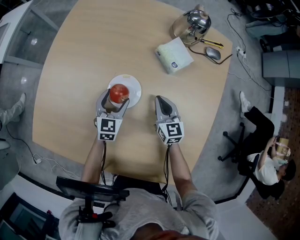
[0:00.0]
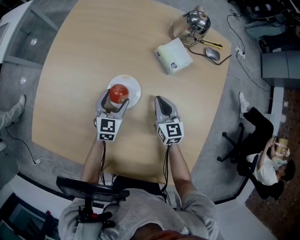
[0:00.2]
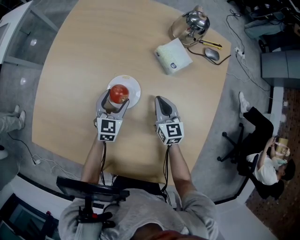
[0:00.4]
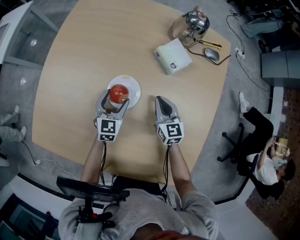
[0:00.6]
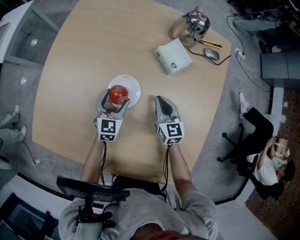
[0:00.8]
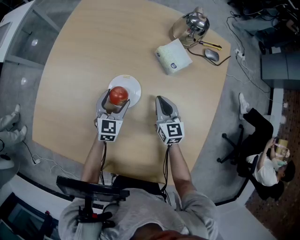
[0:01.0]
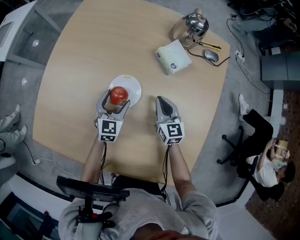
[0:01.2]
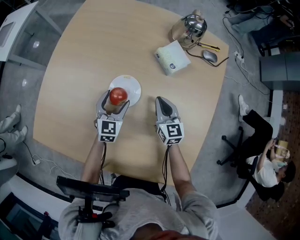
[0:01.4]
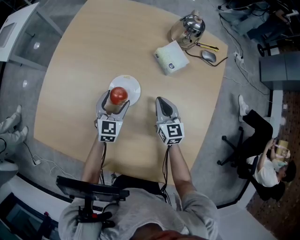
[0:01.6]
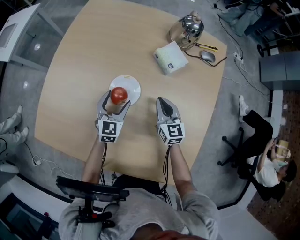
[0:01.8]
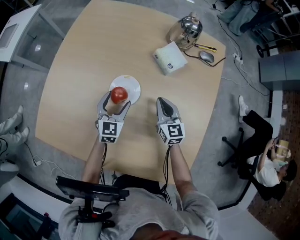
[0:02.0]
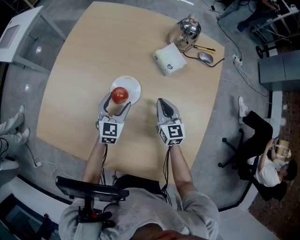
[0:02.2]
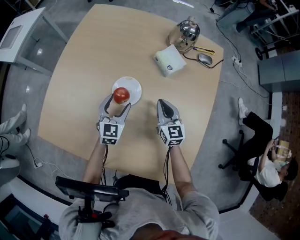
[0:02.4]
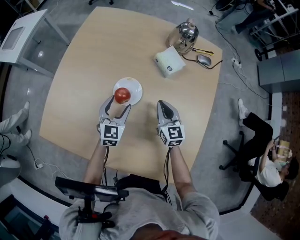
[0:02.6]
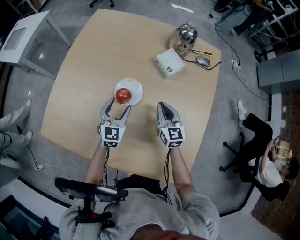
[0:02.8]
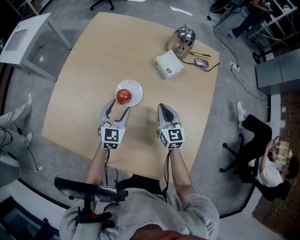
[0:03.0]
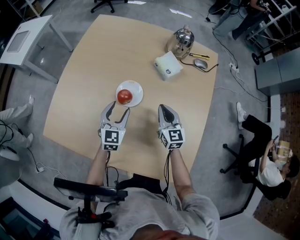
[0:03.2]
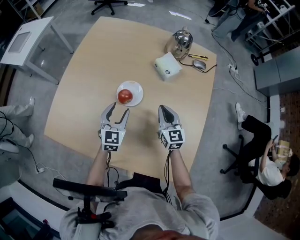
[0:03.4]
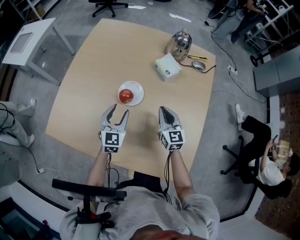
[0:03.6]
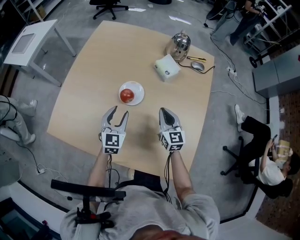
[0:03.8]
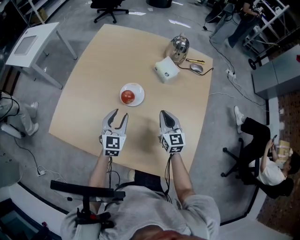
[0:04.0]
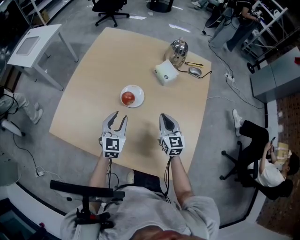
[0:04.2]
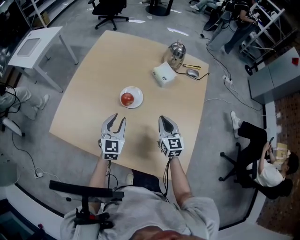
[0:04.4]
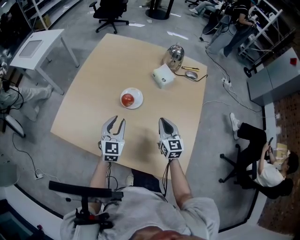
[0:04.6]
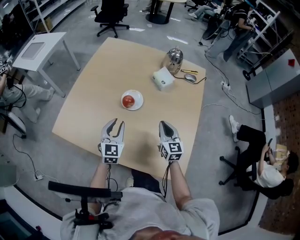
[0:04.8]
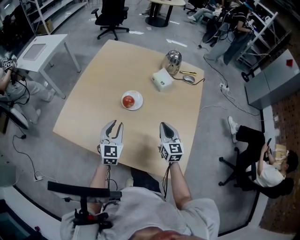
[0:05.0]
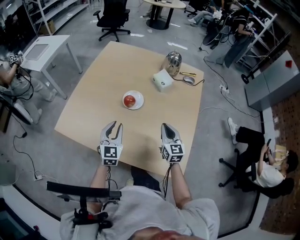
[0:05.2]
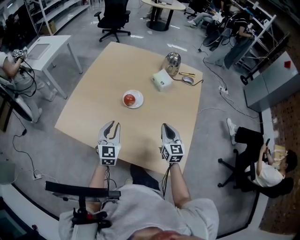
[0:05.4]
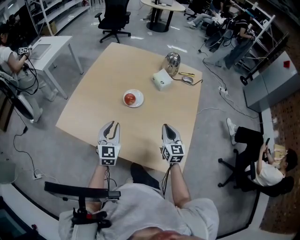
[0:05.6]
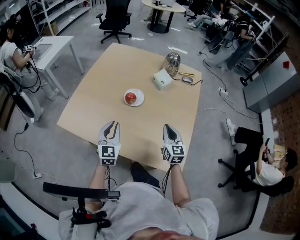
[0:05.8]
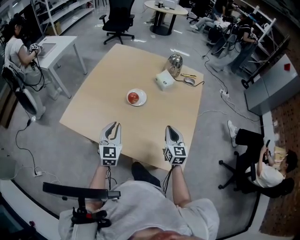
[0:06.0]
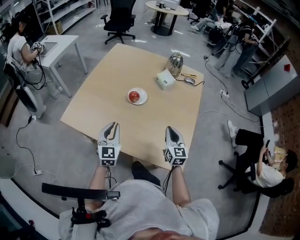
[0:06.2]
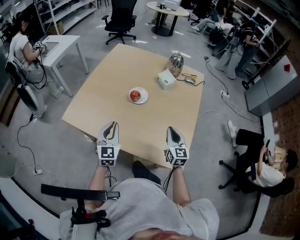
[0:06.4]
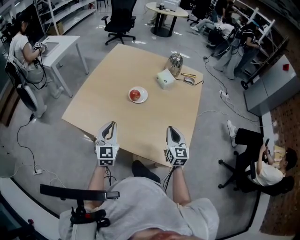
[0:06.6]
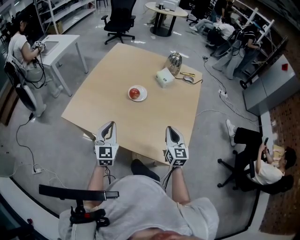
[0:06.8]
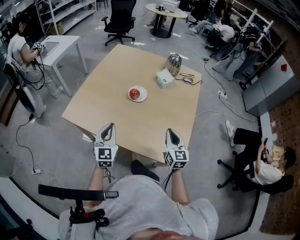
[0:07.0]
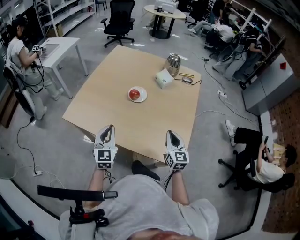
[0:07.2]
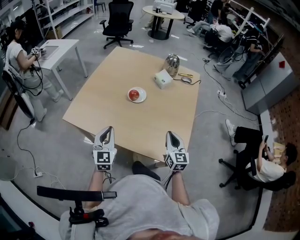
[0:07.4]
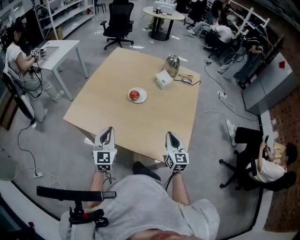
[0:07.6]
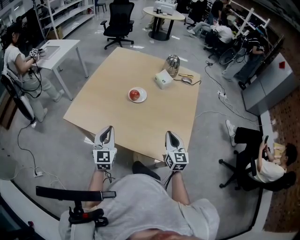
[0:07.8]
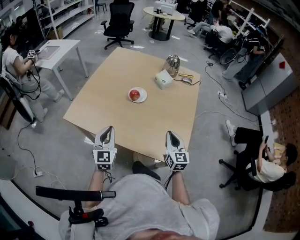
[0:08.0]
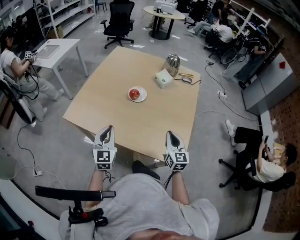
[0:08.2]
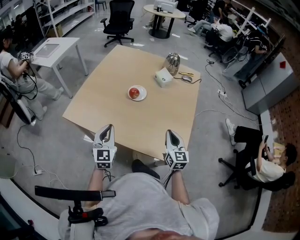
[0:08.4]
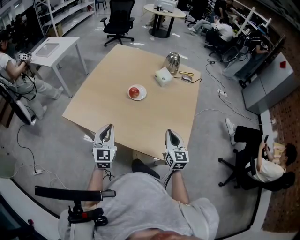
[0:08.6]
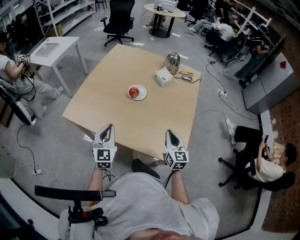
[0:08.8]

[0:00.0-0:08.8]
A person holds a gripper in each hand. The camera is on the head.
0:00.0 to 0:01.4: The grippers stay close to where they were, moving slightly.
0:01.4 to 0:03.0: Both grippers travel together upward and backward, about 10 cm.
0:03.0 to 0:04.4: The two grippers go some 10 cm backward and upward. The left gripper closes.
0:04.4 to 0:05.8: The left gripper heads backward and upward, covering about 15 cm, while the right gripper shifts about 10 cm backward.
0:05.8 to 0:07.4: Both grippers travel together backward, about 10 cm.
0:07.4 to 0:08.8: The two grippers keep their place.

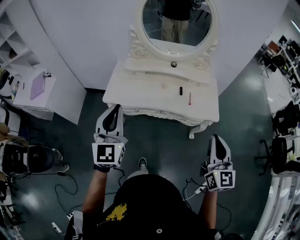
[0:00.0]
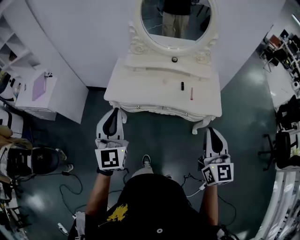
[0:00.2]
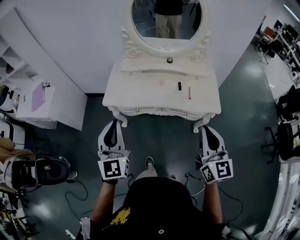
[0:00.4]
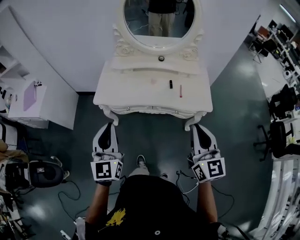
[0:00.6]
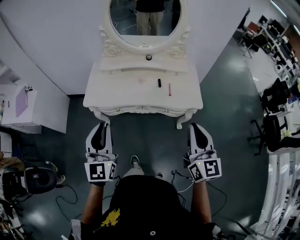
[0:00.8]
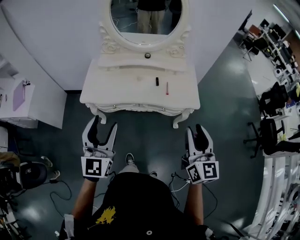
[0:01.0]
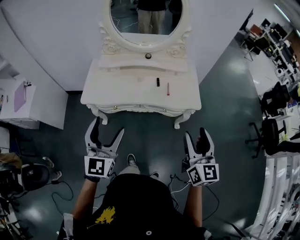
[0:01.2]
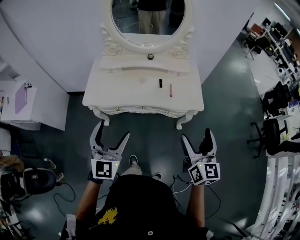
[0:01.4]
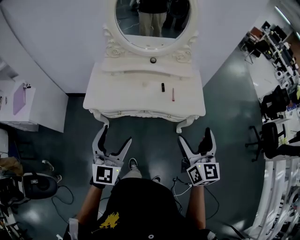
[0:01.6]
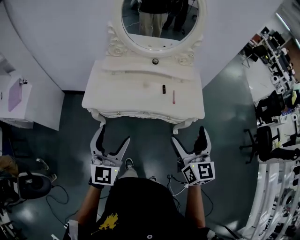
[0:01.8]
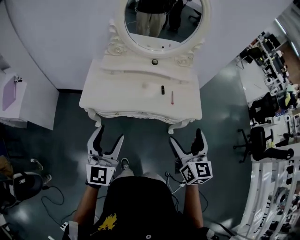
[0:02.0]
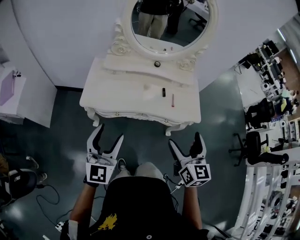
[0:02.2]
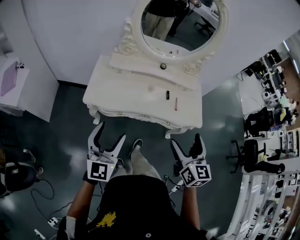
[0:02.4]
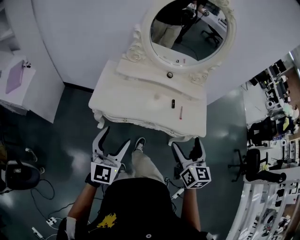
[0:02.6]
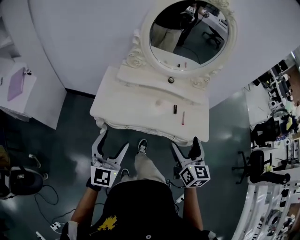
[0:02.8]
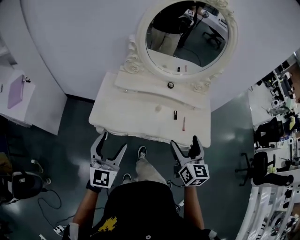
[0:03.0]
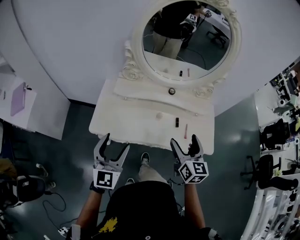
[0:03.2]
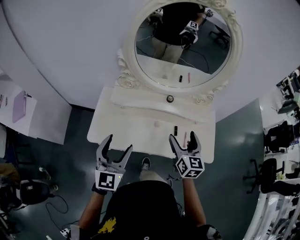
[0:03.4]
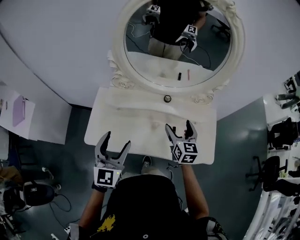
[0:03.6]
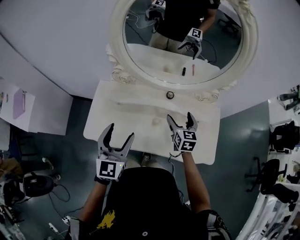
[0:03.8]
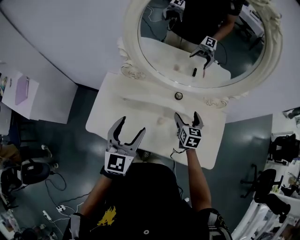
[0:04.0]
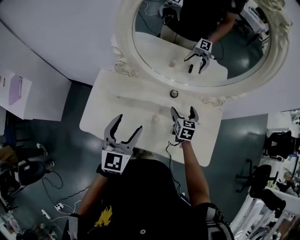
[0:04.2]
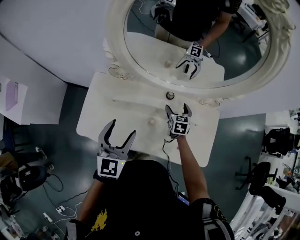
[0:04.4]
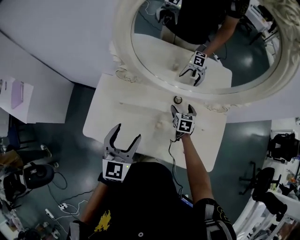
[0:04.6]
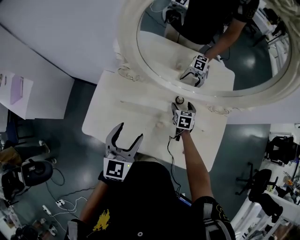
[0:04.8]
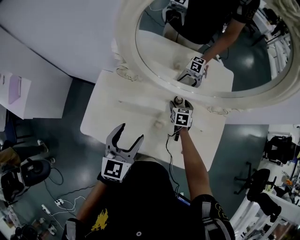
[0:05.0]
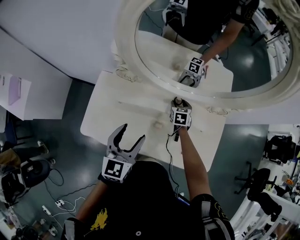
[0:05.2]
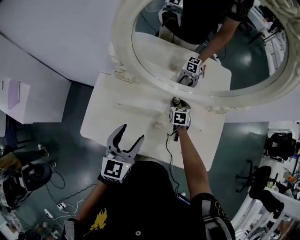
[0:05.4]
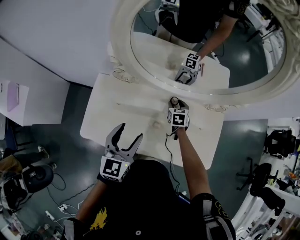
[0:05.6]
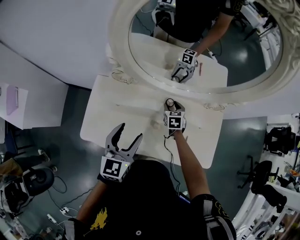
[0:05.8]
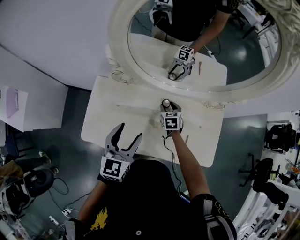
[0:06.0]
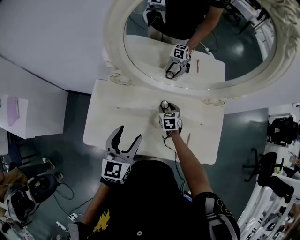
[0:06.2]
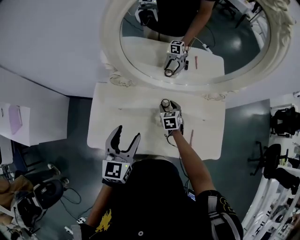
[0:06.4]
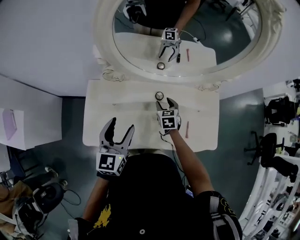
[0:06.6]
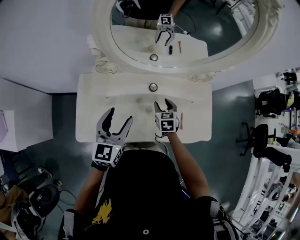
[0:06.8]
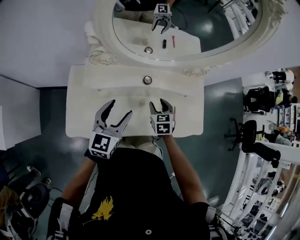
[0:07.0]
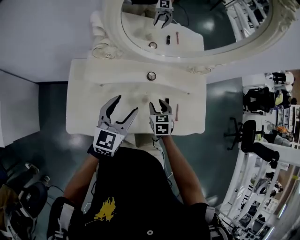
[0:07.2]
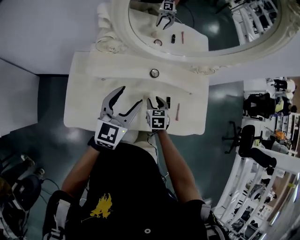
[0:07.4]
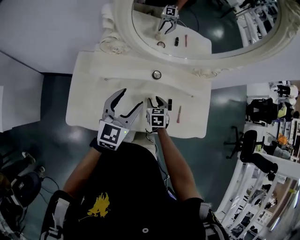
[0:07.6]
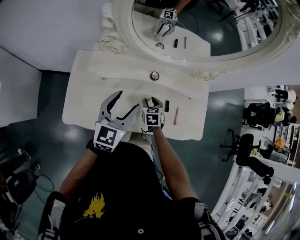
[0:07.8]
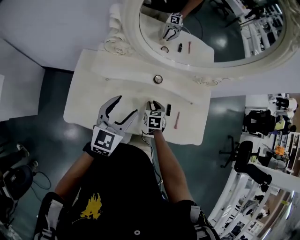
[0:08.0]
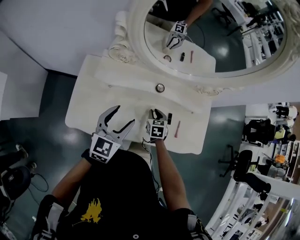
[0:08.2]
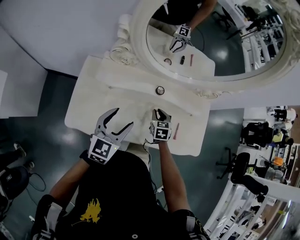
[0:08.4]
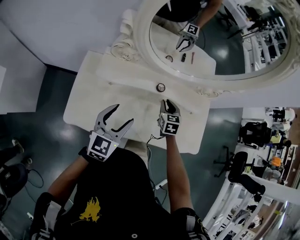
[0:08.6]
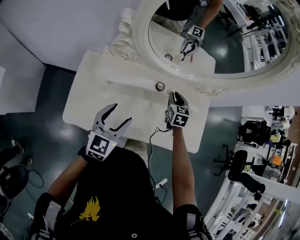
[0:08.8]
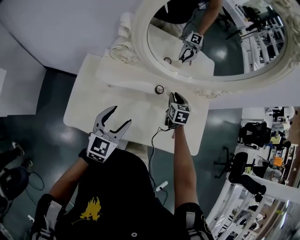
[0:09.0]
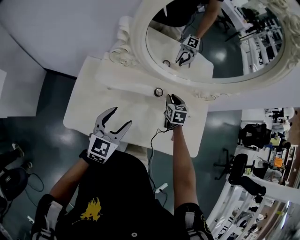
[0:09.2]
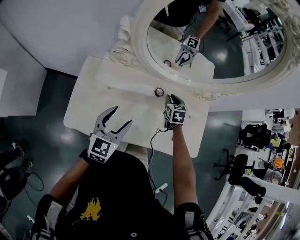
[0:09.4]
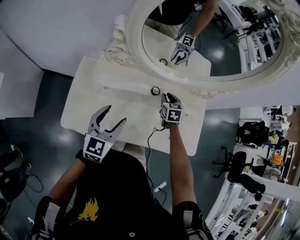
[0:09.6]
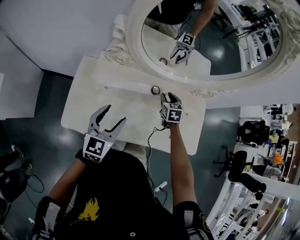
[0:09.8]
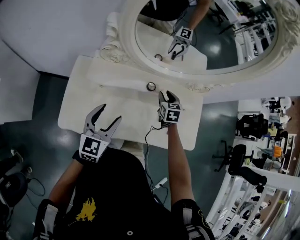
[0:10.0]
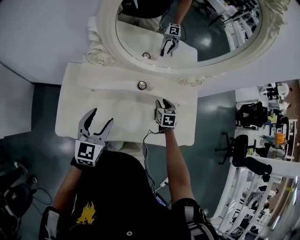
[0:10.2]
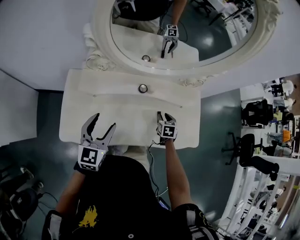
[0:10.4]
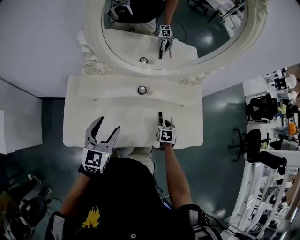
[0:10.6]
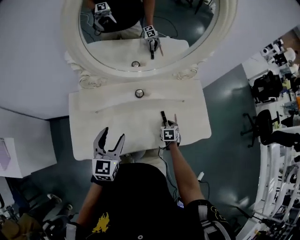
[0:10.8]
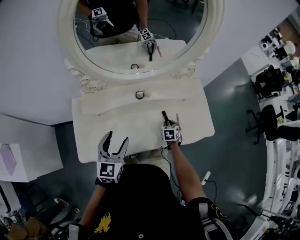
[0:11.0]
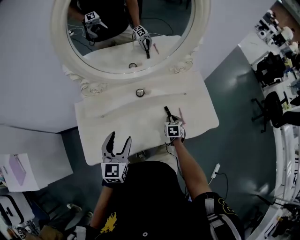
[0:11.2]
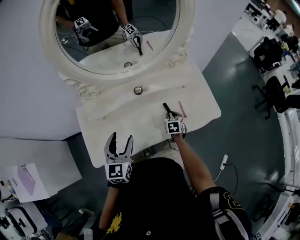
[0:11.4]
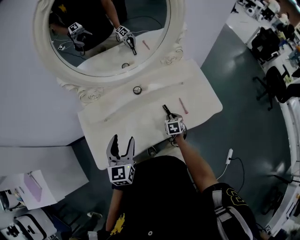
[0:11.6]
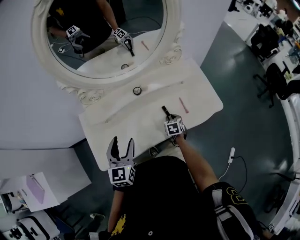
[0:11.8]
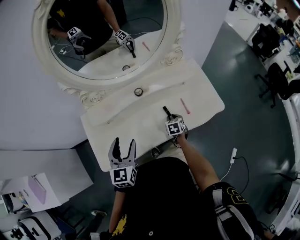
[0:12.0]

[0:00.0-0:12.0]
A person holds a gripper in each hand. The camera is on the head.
0:00.0 to 0:01.6: The left gripper shifts some 10 cm downward and to the right, and opens. Meanwhile the right gripper moves forward, roughly 5 cm, and opens its fingers.
0:01.6 to 0:03.0: The right gripper travels forward and to the left by roughly 20 cm. Meanwhile the left gripper travels to the left and forward by approximately 20 cm.
0:03.0 to 0:04.4: The left gripper is displaced forward by roughly 30 cm; the right gripper heads forward and downward, covering approximately 50 cm, and rotates about 30 degrees.
0:04.4 to 0:06.0: The right gripper moves to the left, some 10 cm, and closes.
0:06.0 to 0:07.6: The left gripper moves downward, roughly 5 cm, while the right gripper is displaced backward by some 15 cm.
0:07.6 to 0:09.0: The right gripper shifts about 15 cm forward and upward; the left gripper shifts by approximately 5 cm.
0:09.0 to 0:10.4: The right gripper shifts some 20 cm to the right, downward and backward.
0:10.4 to 0:12.0: The right gripper moves backward, about 10 cm, while the left gripper moves some 5 cm.

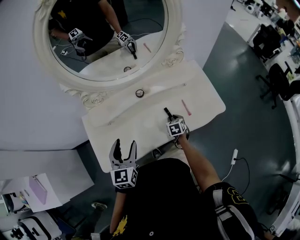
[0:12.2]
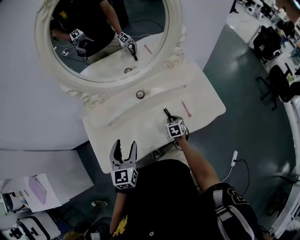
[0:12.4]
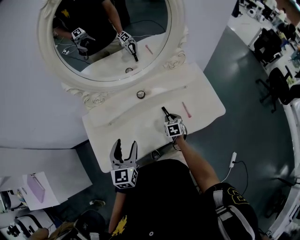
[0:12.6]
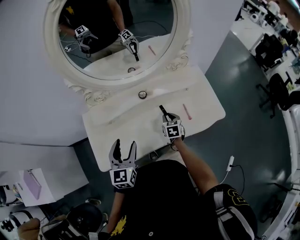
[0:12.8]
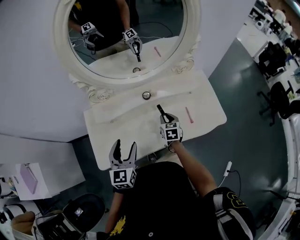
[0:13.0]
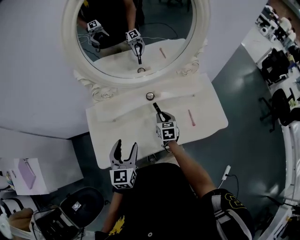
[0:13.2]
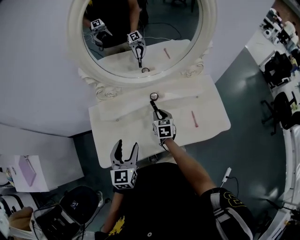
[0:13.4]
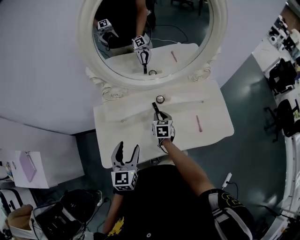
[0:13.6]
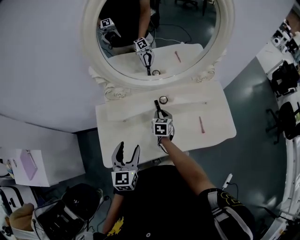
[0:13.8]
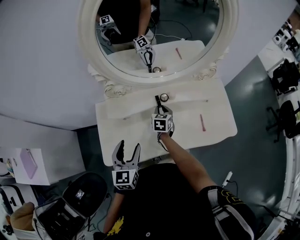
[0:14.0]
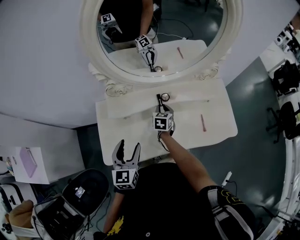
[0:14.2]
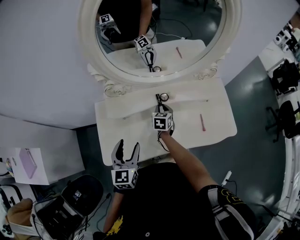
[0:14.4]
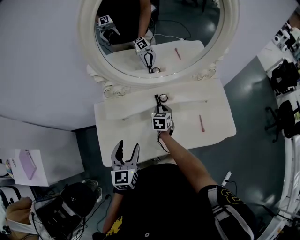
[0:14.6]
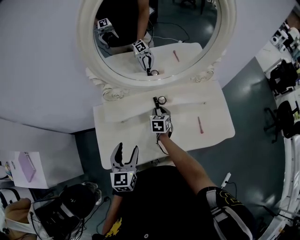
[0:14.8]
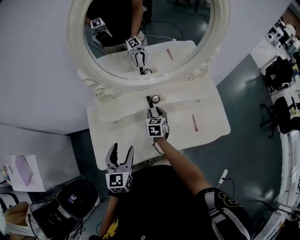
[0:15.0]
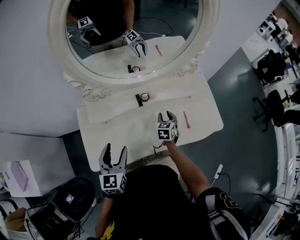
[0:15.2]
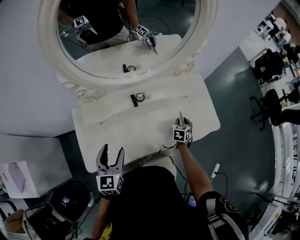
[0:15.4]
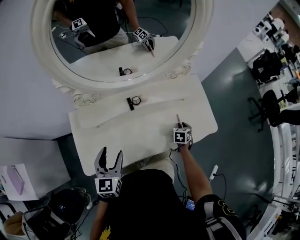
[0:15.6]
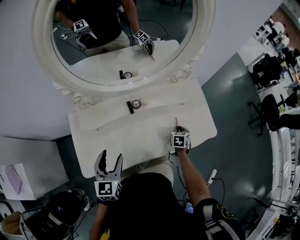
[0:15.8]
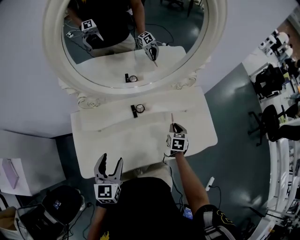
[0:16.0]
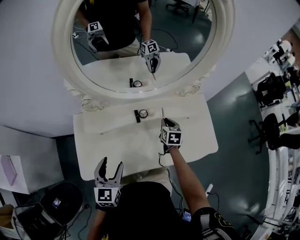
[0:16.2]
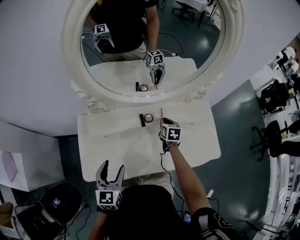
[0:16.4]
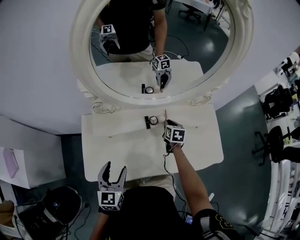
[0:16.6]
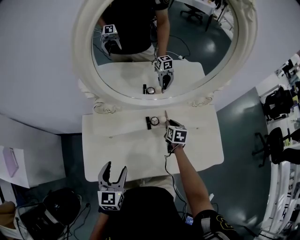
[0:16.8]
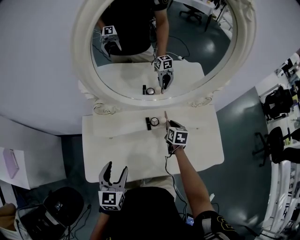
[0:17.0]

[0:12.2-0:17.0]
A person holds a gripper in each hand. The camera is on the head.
0:12.2 to 0:13.8: The left gripper shifts about 5 cm to the left. The right gripper shifts some 25 cm to the left, upward and forward.
0:13.8 to 0:15.4: The right gripper heads to the right, covering approximately 25 cm, and rotates roughly 20 degrees.
0:15.4 to 0:17.0: The right gripper travels to the left, forward and upward by about 25 cm, and swivels approximately 30 degrees.
